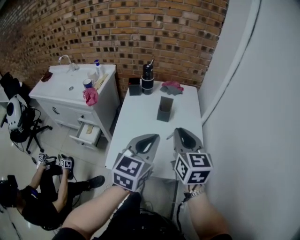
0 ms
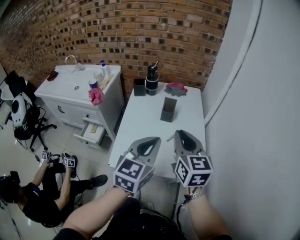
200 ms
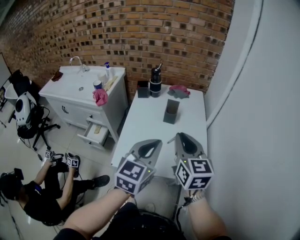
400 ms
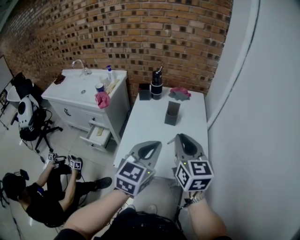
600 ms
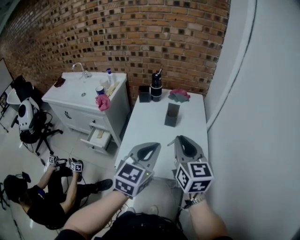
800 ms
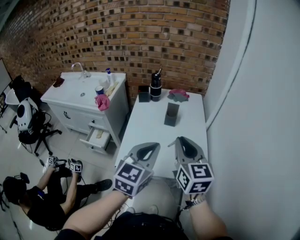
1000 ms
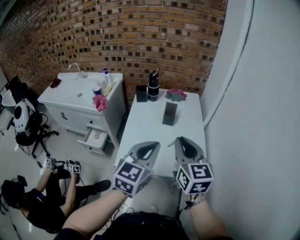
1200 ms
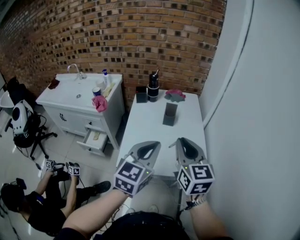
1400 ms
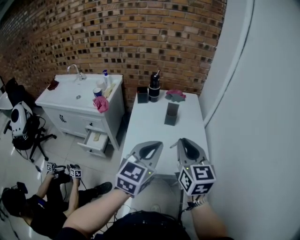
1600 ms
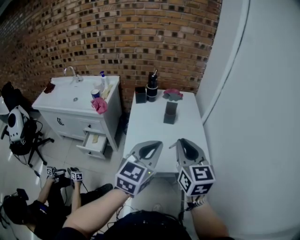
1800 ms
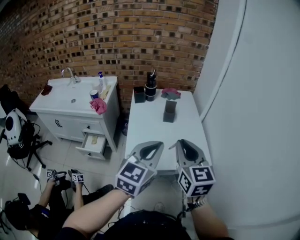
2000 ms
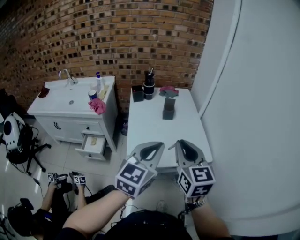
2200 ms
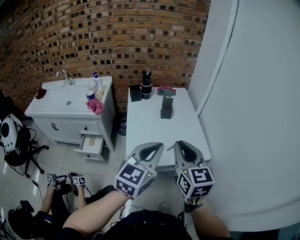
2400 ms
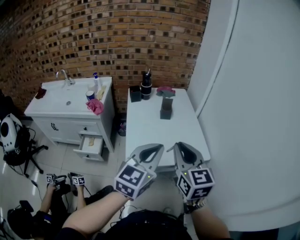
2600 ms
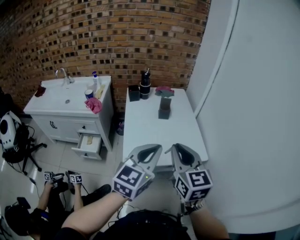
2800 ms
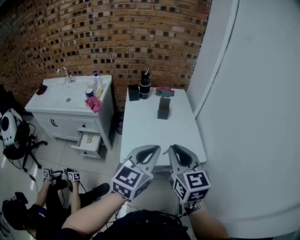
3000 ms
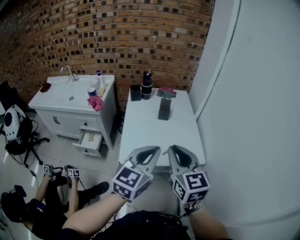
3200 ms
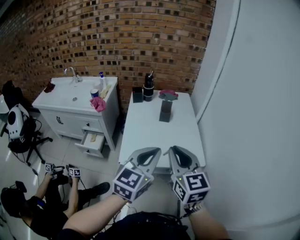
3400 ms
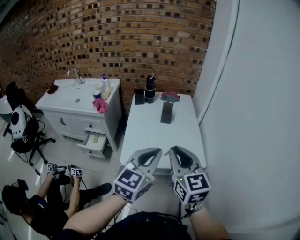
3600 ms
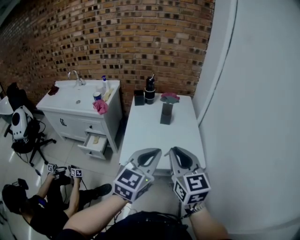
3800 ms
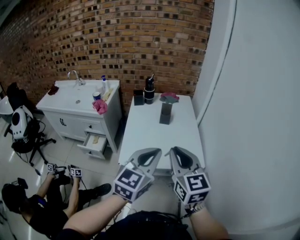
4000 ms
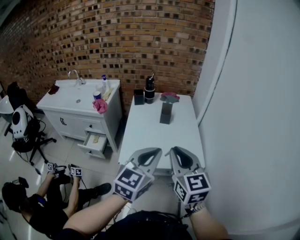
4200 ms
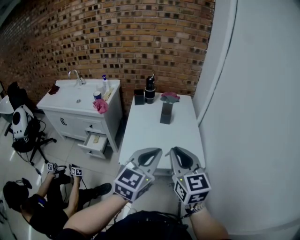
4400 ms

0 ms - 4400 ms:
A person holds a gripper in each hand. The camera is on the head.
0 ms - 1400 ms: The grippers both shift backward by about 10 cm.
1400 ms - 3000 ms: The right gripper is displaced backward and to the left by some 15 cm, while the left gripper is displaced backward by roughly 10 cm.
3000 ms - 4400 ms: The two grippers go about 5 cm to the right.

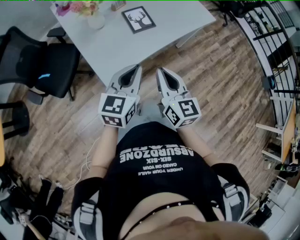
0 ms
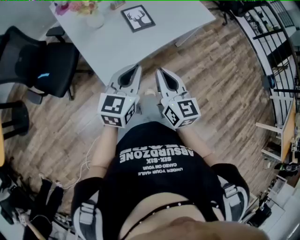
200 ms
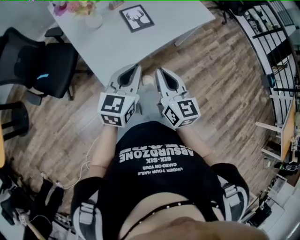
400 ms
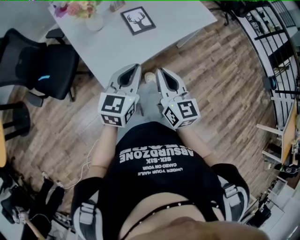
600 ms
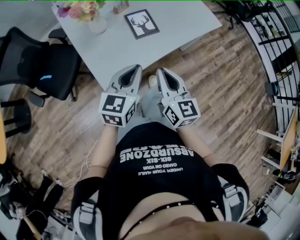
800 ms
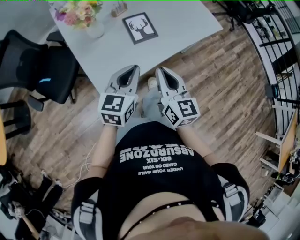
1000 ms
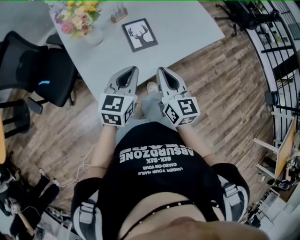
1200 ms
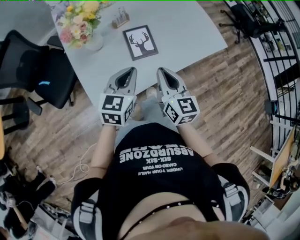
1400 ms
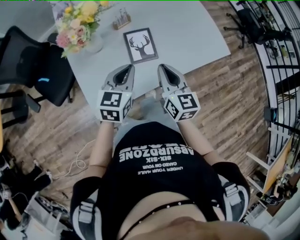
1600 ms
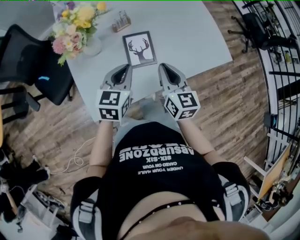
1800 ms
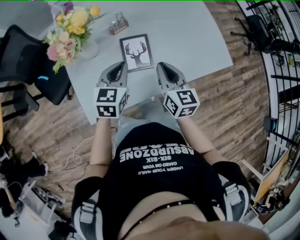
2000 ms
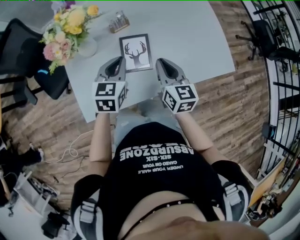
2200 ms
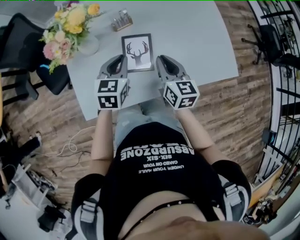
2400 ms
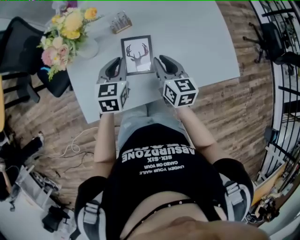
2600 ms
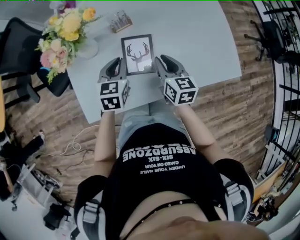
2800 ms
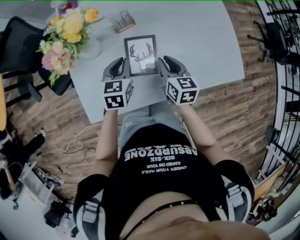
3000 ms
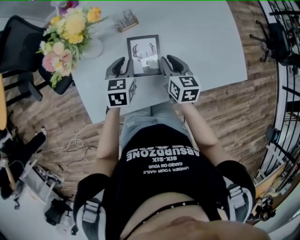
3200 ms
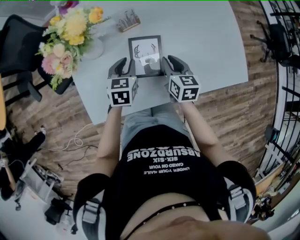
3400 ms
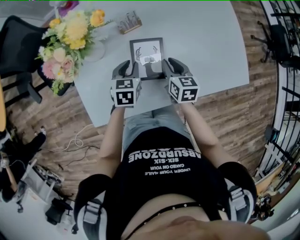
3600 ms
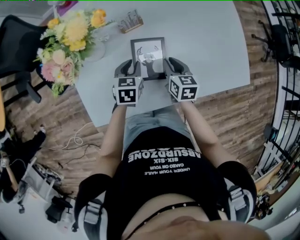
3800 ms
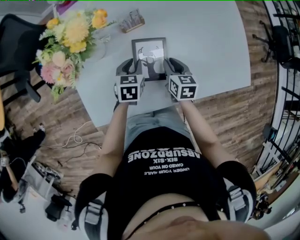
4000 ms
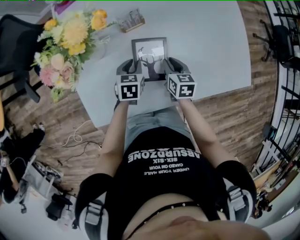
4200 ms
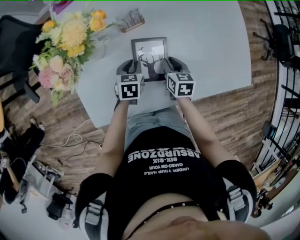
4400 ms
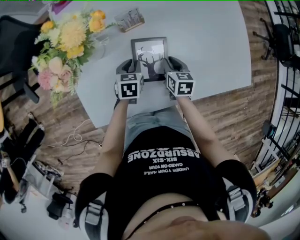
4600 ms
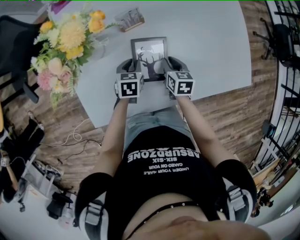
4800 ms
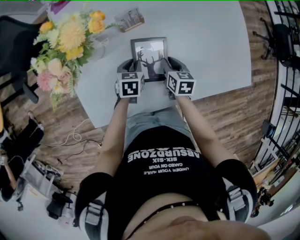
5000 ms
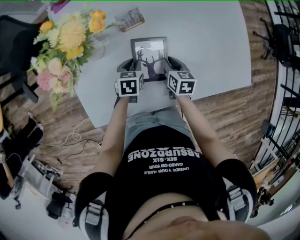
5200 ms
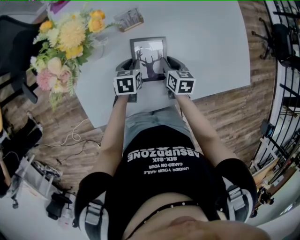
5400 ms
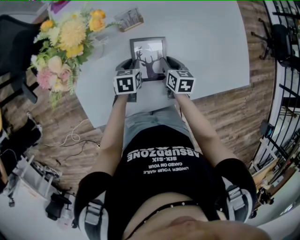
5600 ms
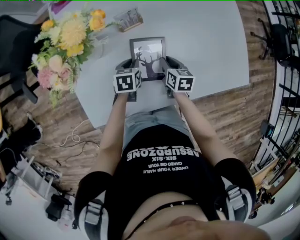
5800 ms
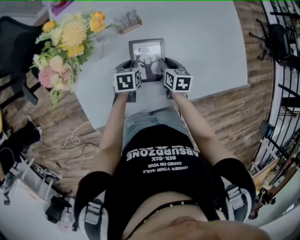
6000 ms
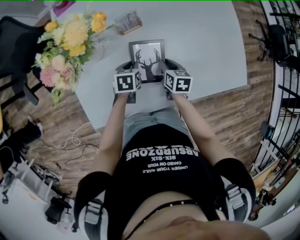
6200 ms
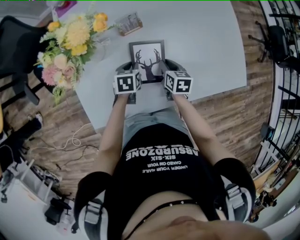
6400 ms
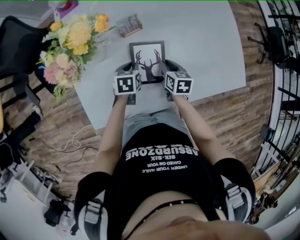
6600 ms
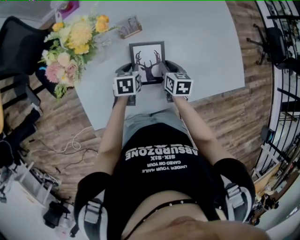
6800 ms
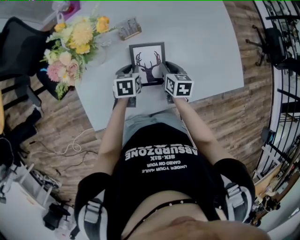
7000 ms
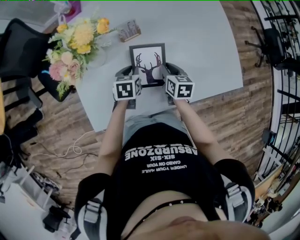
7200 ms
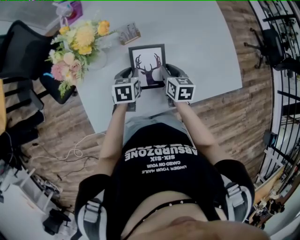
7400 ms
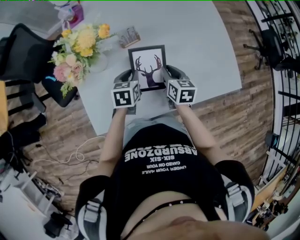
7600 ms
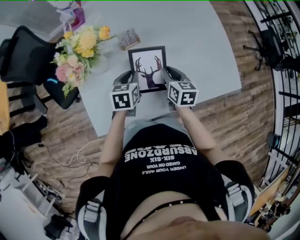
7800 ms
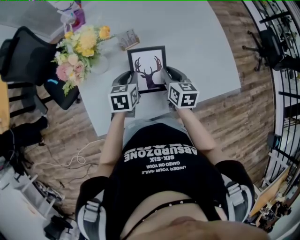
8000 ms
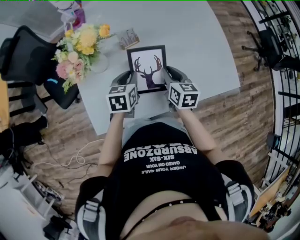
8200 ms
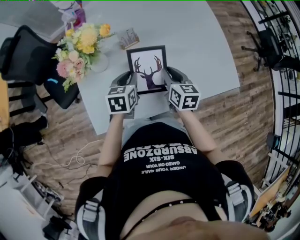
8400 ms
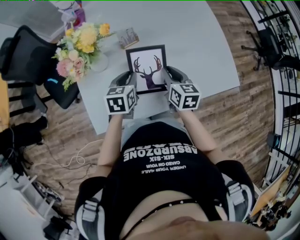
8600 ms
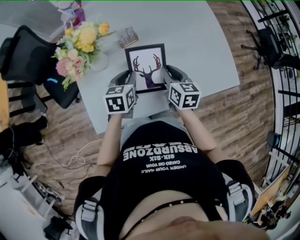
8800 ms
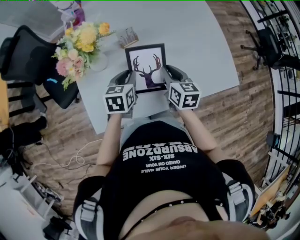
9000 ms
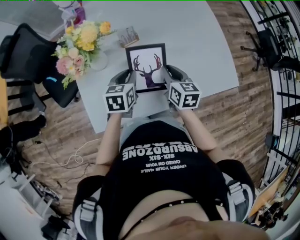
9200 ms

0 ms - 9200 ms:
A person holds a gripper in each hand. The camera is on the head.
0 ms - 1600 ms: Both grippers move forward, about 25 cm.
1600 ms - 3000 ms: The right gripper heads forward, downward and to the right, covering approximately 20 cm, and swivels roughly 20 degrees. The left gripper is displaced forward and downward by roughly 15 cm, and changes its angle by some 30 degrees.
3000 ms - 4600 ms: The two grippers go approximately 15 cm downward.
4600 ms - 6200 ms: The grippers move only a little.
6200 ms - 7600 ms: The grippers both shift upward by some 10 cm.
7600 ms - 9200 ms: Both grippers move upward, some 5 cm.

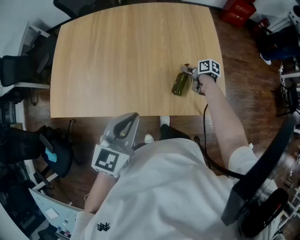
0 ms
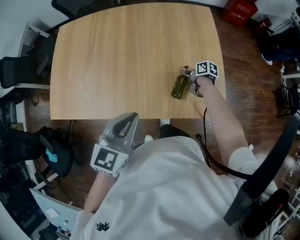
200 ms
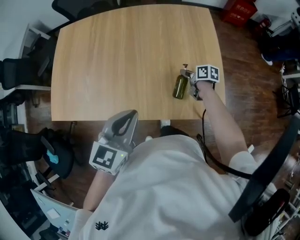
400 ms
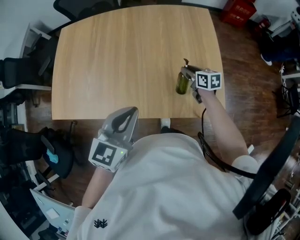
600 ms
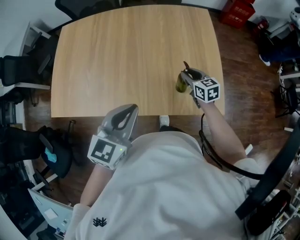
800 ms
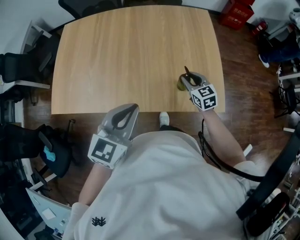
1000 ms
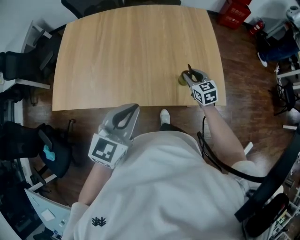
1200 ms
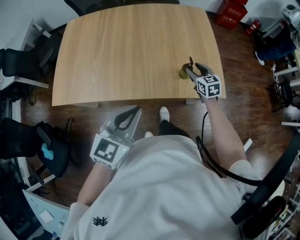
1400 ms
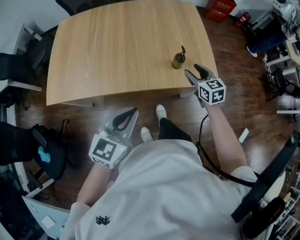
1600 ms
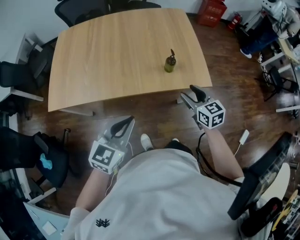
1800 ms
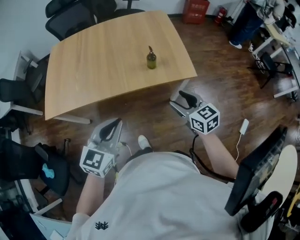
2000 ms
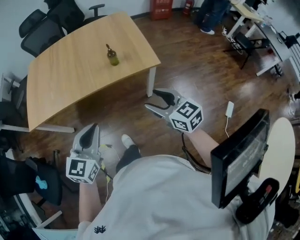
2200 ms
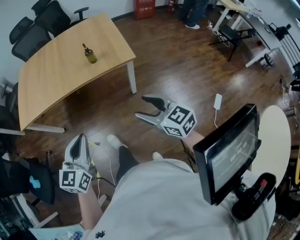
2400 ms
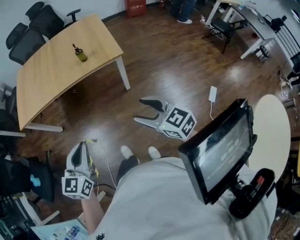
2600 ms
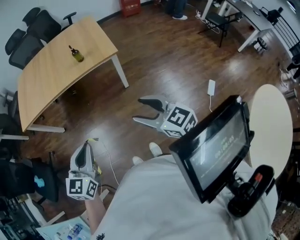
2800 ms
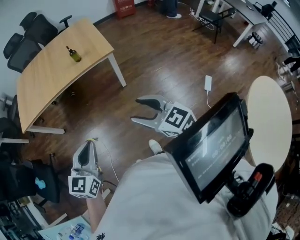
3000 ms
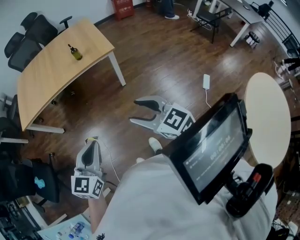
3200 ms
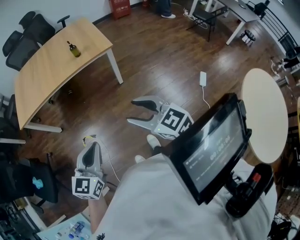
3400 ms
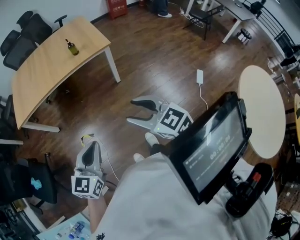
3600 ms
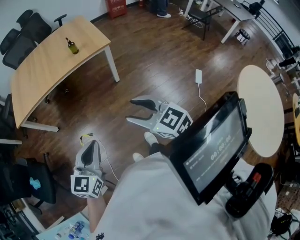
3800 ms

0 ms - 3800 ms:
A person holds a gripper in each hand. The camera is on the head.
0 ms - 1200 ms: The right gripper travels upward and backward by approximately 15 cm, rolls counterclockwise, seen from behind, by some 60 degrees, and closes its fingers.
1200 ms - 2600 ms: Both grippers move backward, about 40 cm. The right gripper opens.
2600 ms - 3800 ms: The left gripper moves backward, about 10 cm, while the right gripper shifts approximately 15 cm backward and to the left.

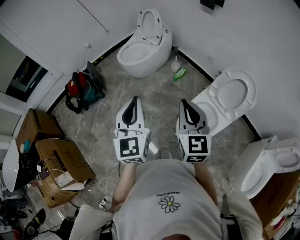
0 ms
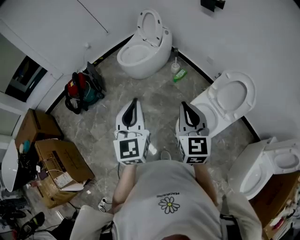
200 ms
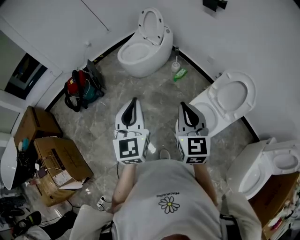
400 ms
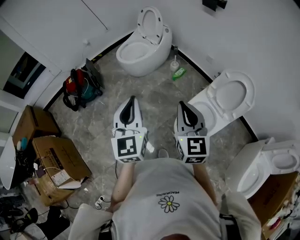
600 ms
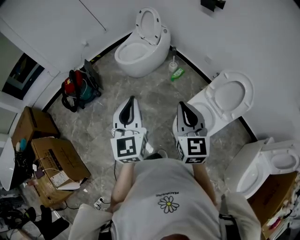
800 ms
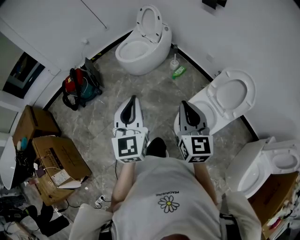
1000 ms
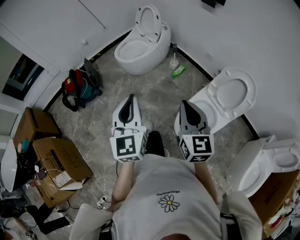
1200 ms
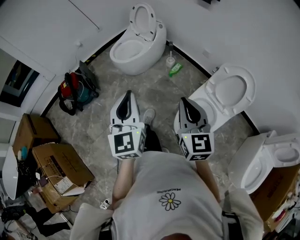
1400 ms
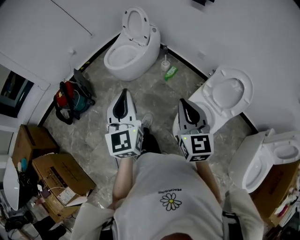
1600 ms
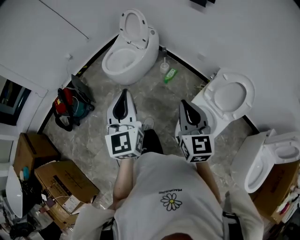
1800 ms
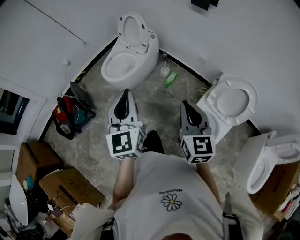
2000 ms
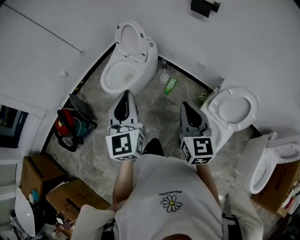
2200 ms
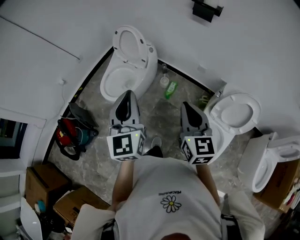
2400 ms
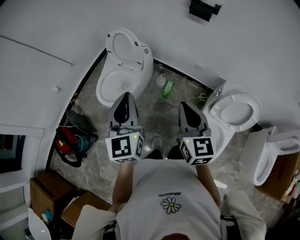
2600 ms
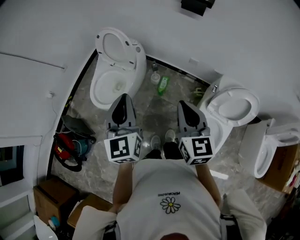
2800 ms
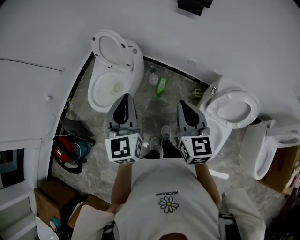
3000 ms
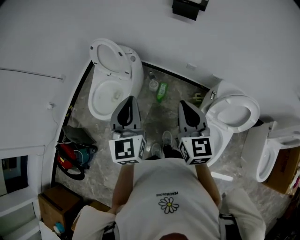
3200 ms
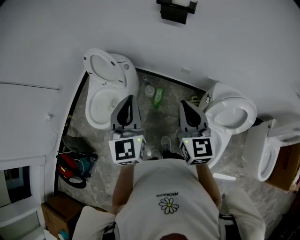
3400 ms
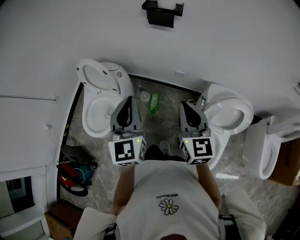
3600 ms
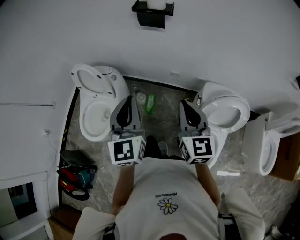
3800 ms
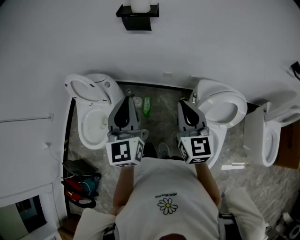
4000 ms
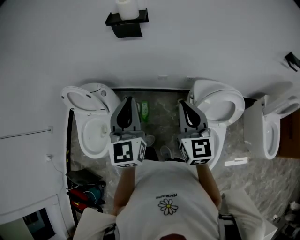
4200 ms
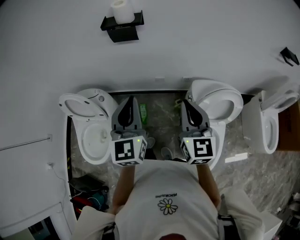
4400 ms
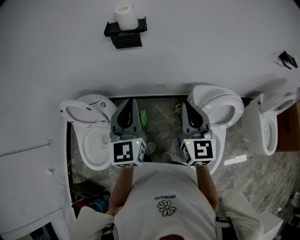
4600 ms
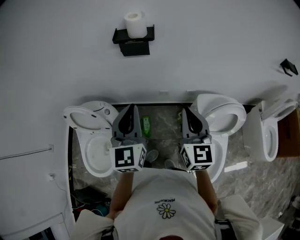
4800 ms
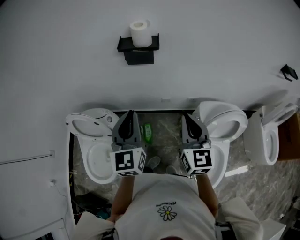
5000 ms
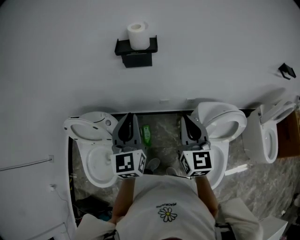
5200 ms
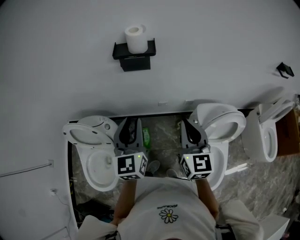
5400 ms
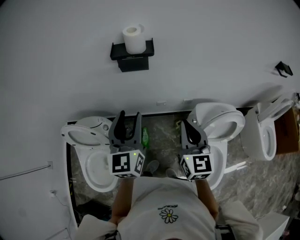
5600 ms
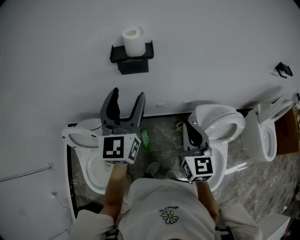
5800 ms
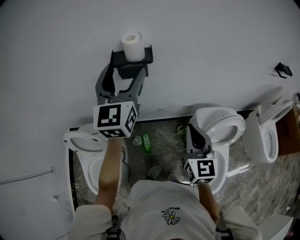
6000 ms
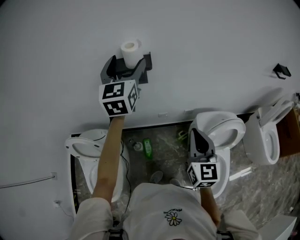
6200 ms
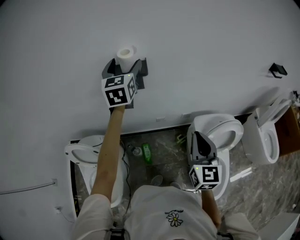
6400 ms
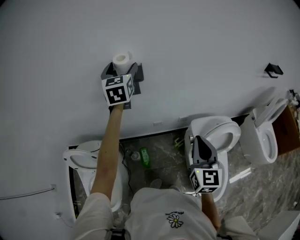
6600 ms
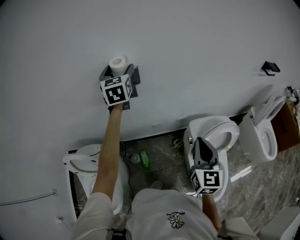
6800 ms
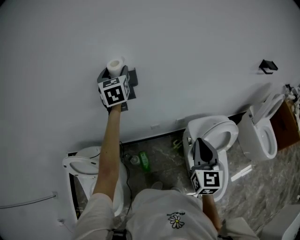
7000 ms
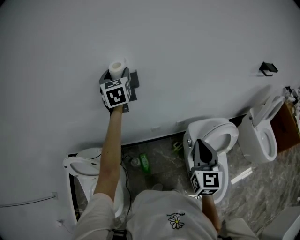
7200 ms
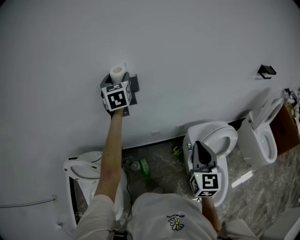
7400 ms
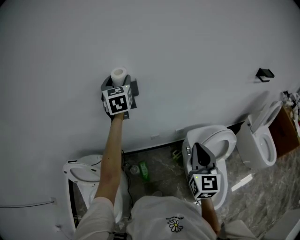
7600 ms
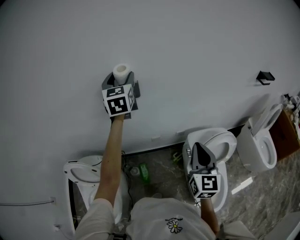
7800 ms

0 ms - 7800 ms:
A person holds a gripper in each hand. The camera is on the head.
0 ms - 1600 ms: The left gripper is displaced forward by approximately 10 cm. Meanwhile the right gripper travels forward by approximately 5 cm.
1600 ms - 3200 ms: The grippers both shift forward by some 40 cm. The right gripper changes its angle by some 20 degrees. Meanwhile the left gripper turns by roughly 20 degrees.
3200 ms - 4600 ms: The left gripper moves roughly 20 cm, and changes its angle by some 30 degrees. The right gripper moves about 20 cm, and changes its angle by about 30 degrees.
4600 ms - 6200 ms: The left gripper travels forward and upward by about 30 cm, and opens its fingers.
6200 ms - 7800 ms: The right gripper goes roughly 5 cm to the right. Meanwhile the left gripper is displaced forward by roughly 5 cm.
